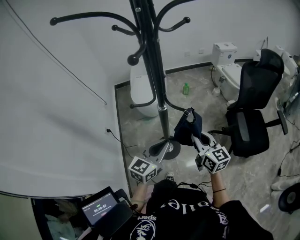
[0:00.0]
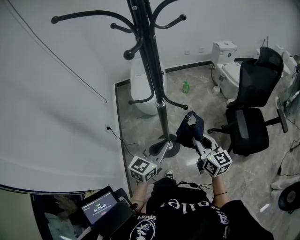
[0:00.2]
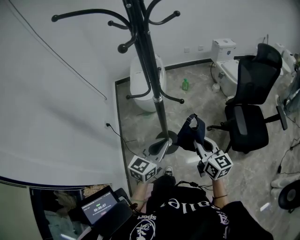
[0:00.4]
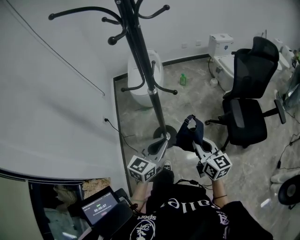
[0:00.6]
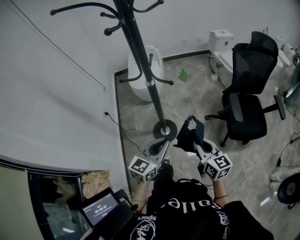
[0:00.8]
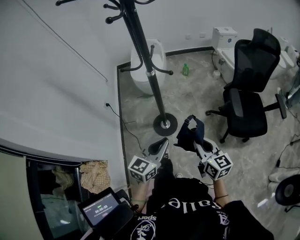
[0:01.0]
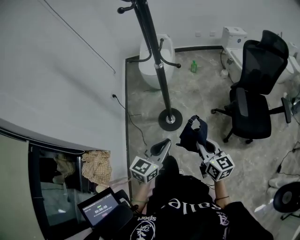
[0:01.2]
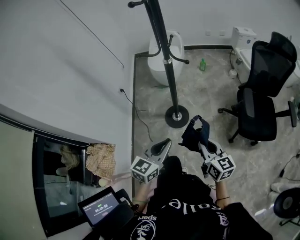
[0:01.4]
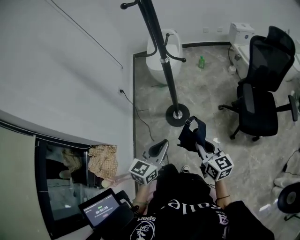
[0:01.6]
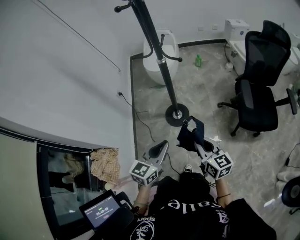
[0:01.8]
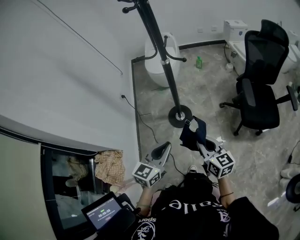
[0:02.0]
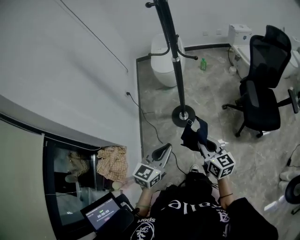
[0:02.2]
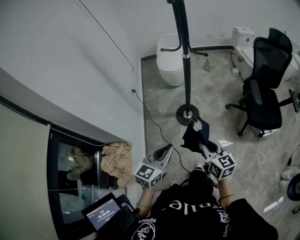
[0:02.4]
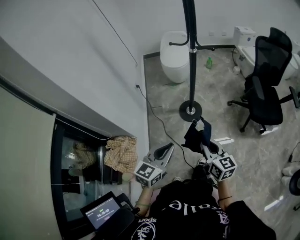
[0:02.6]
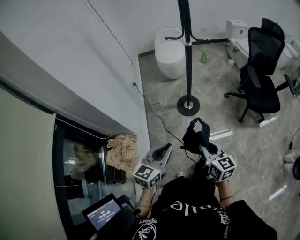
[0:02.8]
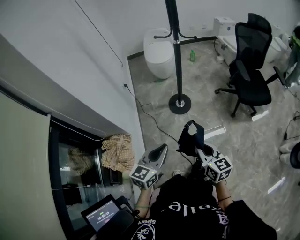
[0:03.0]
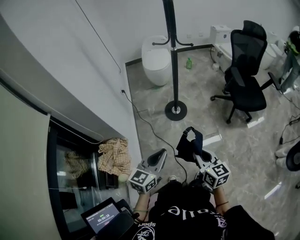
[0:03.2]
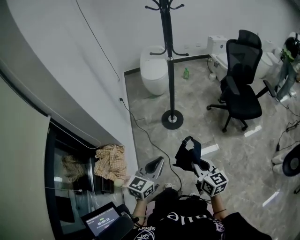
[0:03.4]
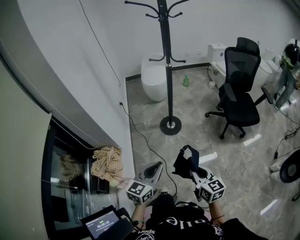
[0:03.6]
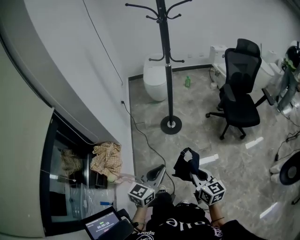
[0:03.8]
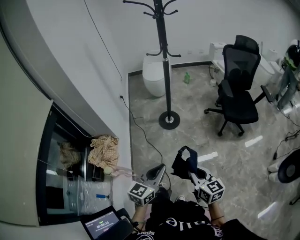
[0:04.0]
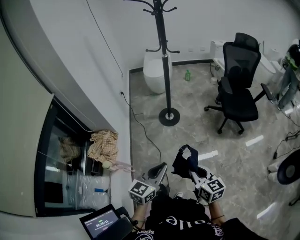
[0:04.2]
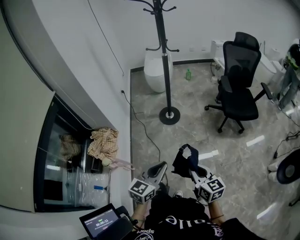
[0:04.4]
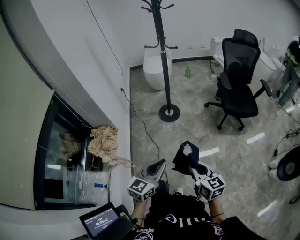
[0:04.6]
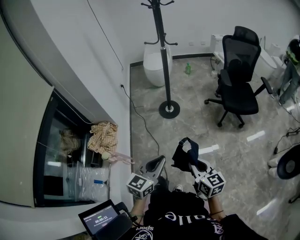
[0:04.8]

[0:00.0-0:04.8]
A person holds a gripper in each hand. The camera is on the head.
0:00.0 to 0:01.6: Both grippers travel together backward, approximately 25 cm.
0:01.6 to 0:03.2: The grippers both shift backward and to the left by approximately 30 cm.
0:03.2 to 0:04.8: The grippers both shift backward and to the right by about 25 cm.

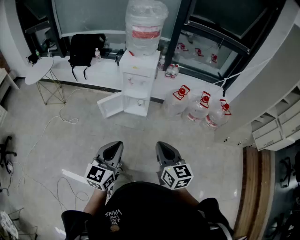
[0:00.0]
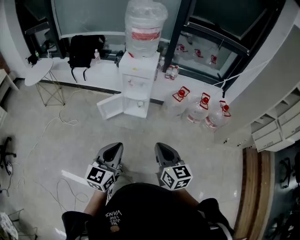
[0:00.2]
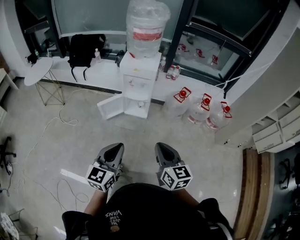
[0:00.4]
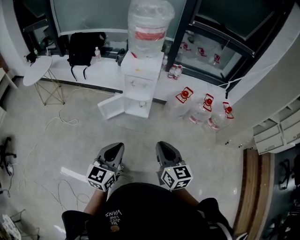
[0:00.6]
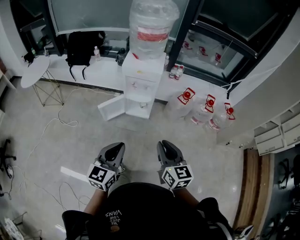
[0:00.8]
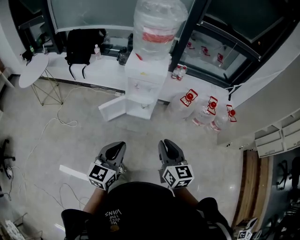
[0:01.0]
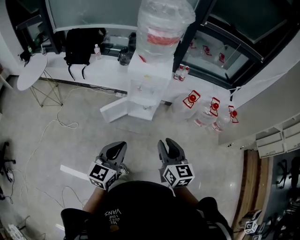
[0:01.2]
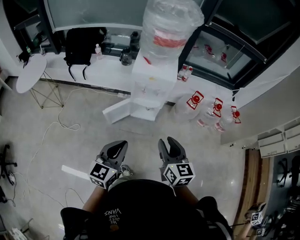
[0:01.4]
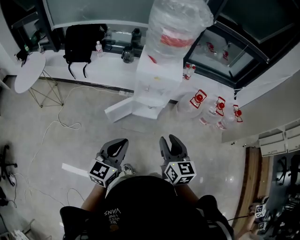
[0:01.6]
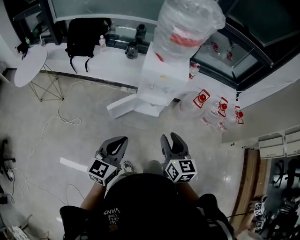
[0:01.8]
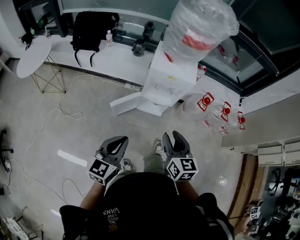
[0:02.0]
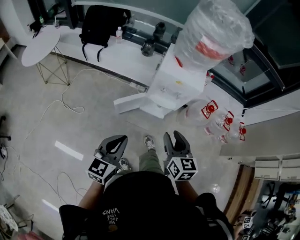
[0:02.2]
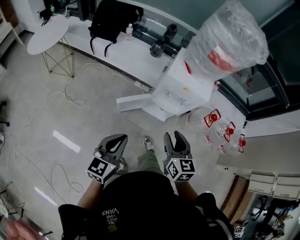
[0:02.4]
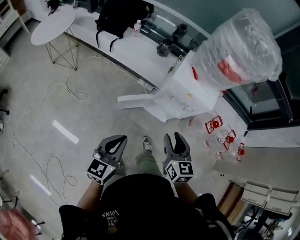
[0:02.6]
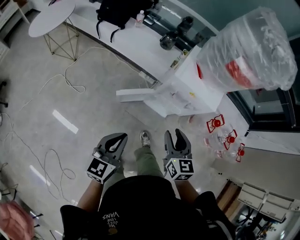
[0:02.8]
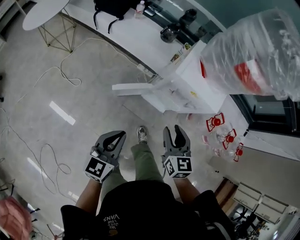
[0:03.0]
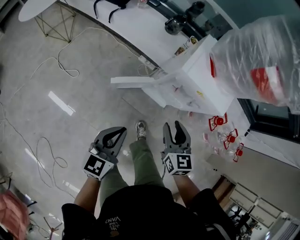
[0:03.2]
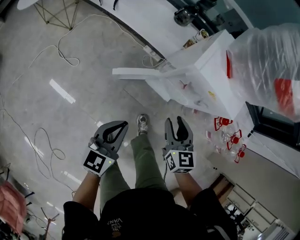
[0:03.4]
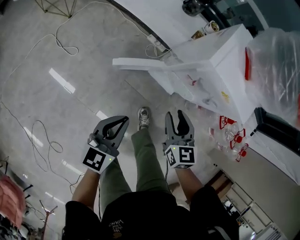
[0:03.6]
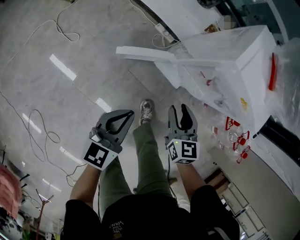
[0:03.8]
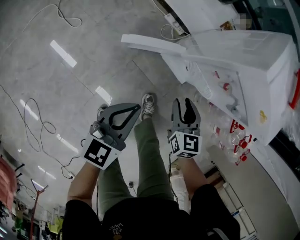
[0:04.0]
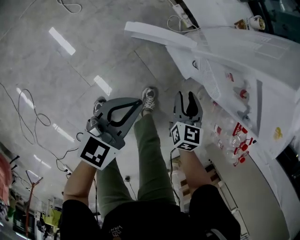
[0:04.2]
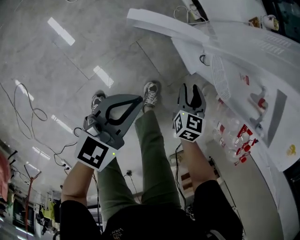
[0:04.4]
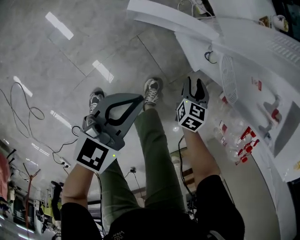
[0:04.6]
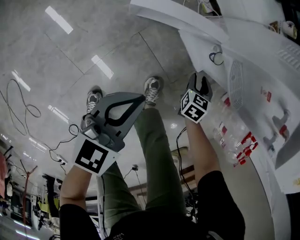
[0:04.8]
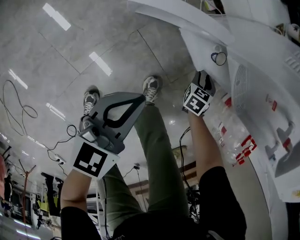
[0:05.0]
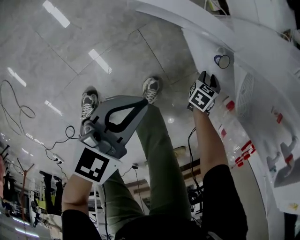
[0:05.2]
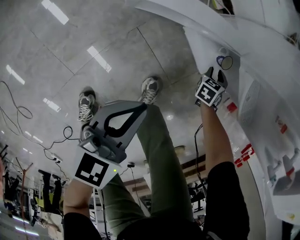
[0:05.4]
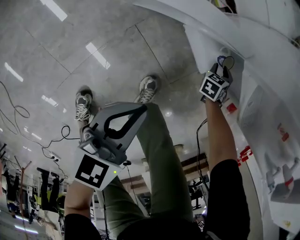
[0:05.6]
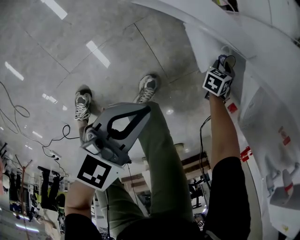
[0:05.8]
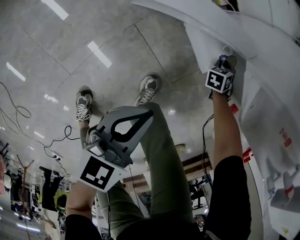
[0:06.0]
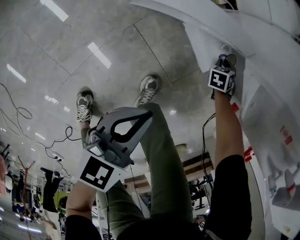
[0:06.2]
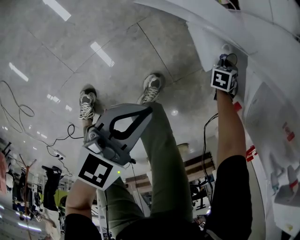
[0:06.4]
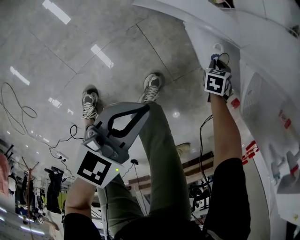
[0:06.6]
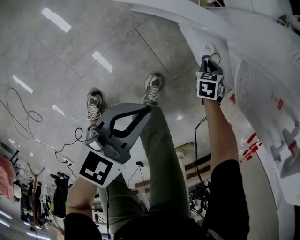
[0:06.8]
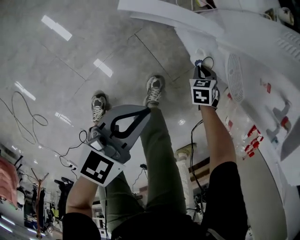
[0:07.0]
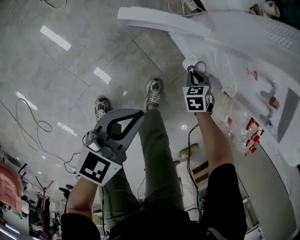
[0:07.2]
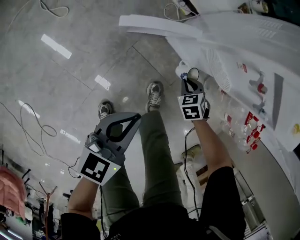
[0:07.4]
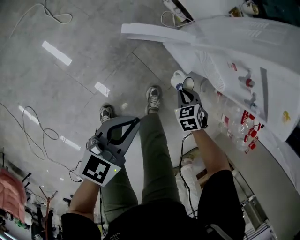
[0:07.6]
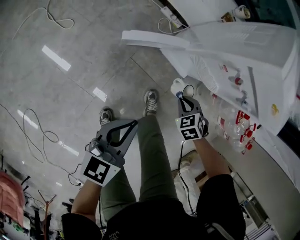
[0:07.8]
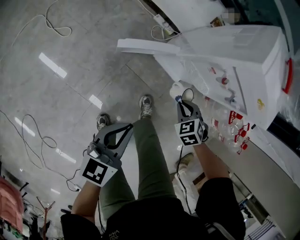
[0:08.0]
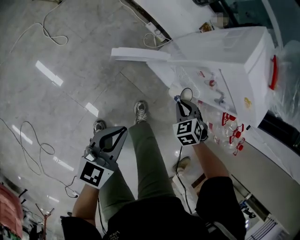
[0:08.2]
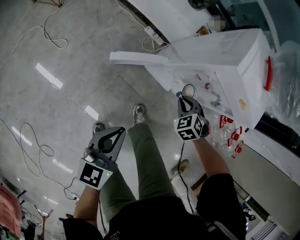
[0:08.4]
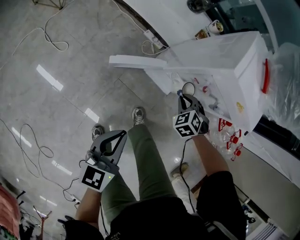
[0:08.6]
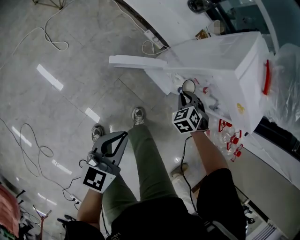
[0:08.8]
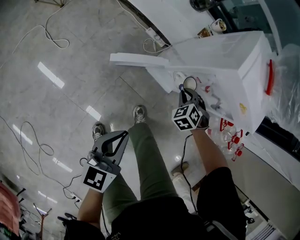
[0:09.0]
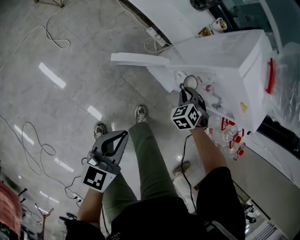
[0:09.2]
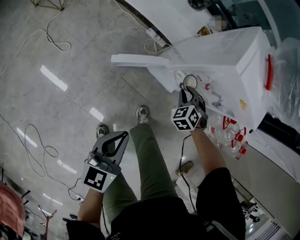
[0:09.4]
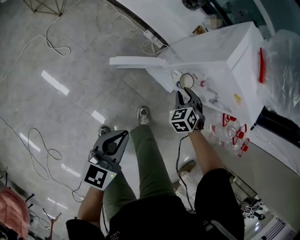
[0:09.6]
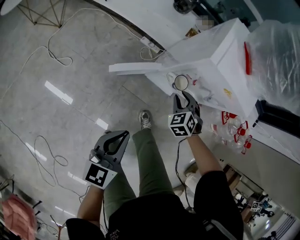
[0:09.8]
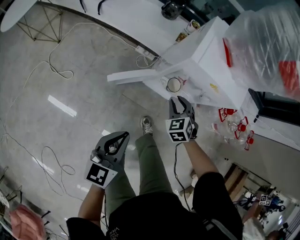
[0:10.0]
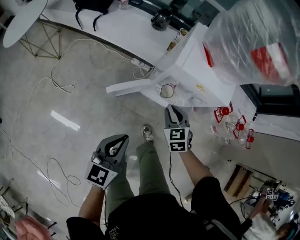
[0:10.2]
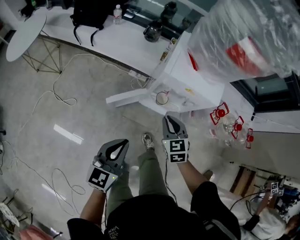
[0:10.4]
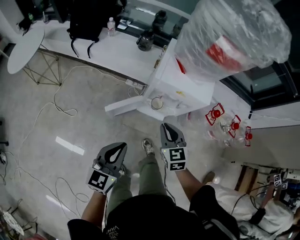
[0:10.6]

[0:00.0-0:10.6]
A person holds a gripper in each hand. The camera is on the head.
0:00.0 to 0:01.6: The grippers both shift forward and to the left by roughly 30 cm. The right gripper opens.
0:01.6 to 0:03.0: The right gripper shifts about 25 cm forward and downward, and changes its angle by roughly 20 degrees. Meanwhile the left gripper travels forward, downward and to the left by some 20 cm, and swivels roughly 20 degrees.
0:03.0 to 0:04.6: The two grippers go roughly 50 cm downward. The right gripper rotates approximately 30 degrees.
0:04.6 to 0:06.0: The right gripper is displaced downward by roughly 20 cm, and changes its angle by about 40 degrees, while the left gripper is displaced downward by about 15 cm.
0:06.0 to 0:07.6: The grippers both shift upward by some 25 cm. The right gripper changes its angle by some 30 degrees.
0:07.6 to 0:09.0: The right gripper heads upward, covering approximately 15 cm, and rotates approximately 20 degrees. The left gripper travels upward by roughly 10 cm.
0:09.0 to 0:10.6: The left gripper moves upward, roughly 20 cm, and turns by approximately 30 degrees. The right gripper goes about 35 cm upward and backward, and twists roughly 50 degrees clockwise, seen from behind.

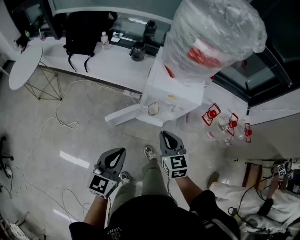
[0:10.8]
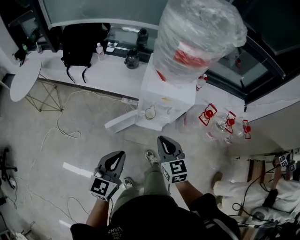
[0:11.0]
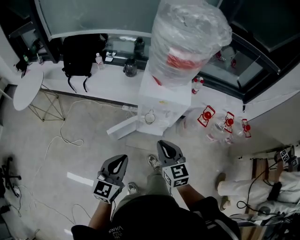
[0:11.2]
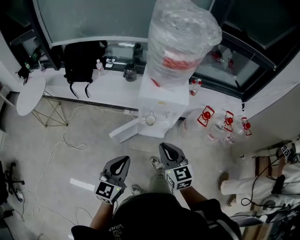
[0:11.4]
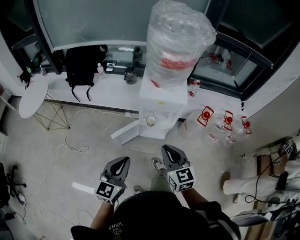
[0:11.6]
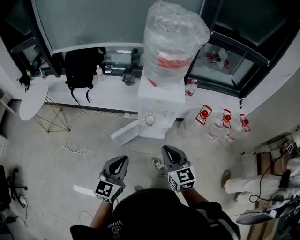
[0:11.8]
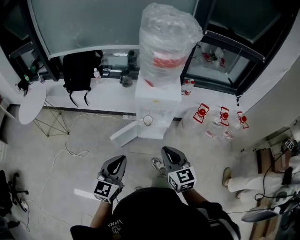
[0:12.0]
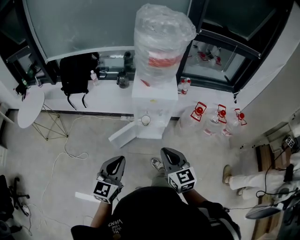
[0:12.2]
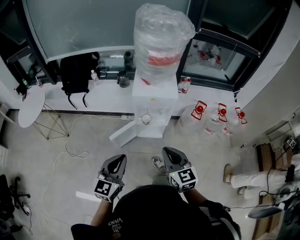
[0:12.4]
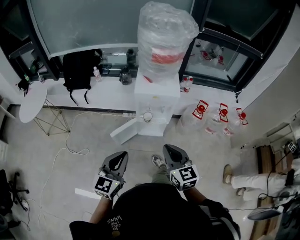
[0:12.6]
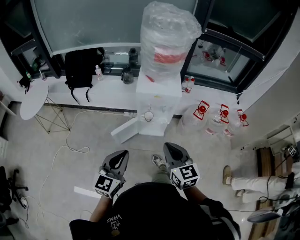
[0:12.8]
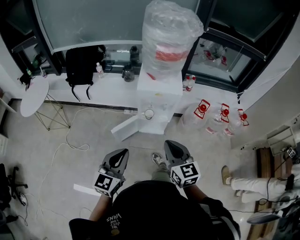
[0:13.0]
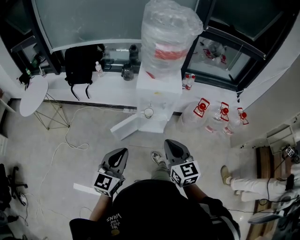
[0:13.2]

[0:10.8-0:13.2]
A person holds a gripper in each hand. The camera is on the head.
0:10.8 to 0:12.0: Both grippers move backward and upward, about 15 cm.
0:12.0 to 0:13.2: The grippers move only a little.

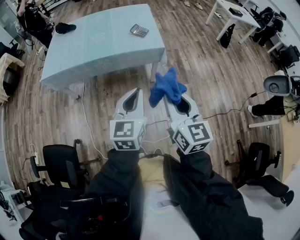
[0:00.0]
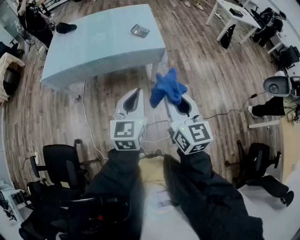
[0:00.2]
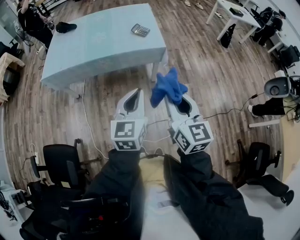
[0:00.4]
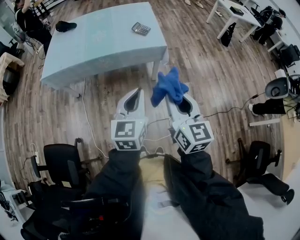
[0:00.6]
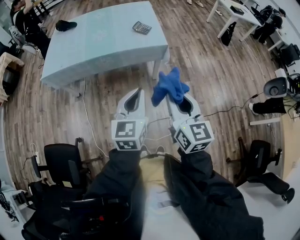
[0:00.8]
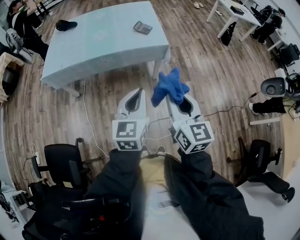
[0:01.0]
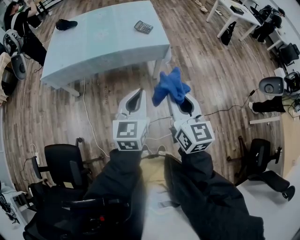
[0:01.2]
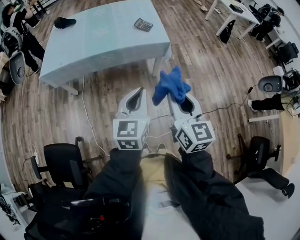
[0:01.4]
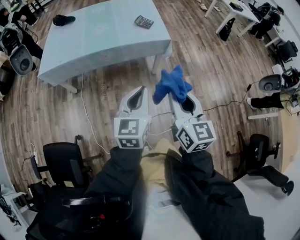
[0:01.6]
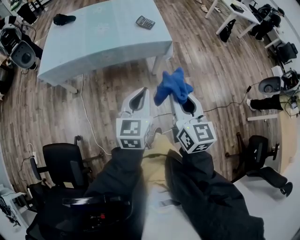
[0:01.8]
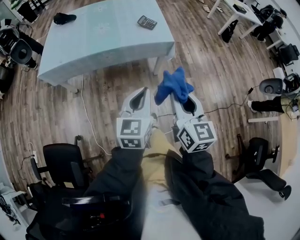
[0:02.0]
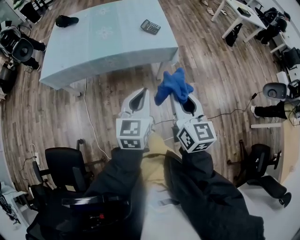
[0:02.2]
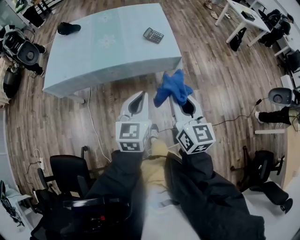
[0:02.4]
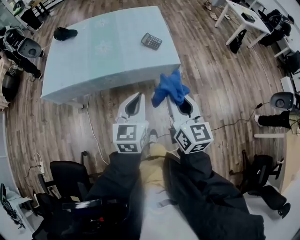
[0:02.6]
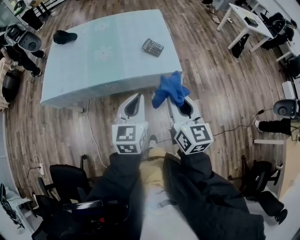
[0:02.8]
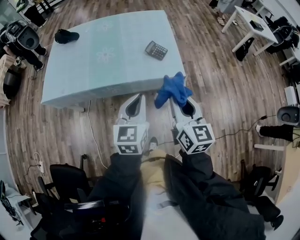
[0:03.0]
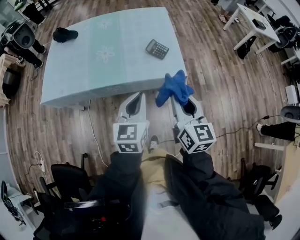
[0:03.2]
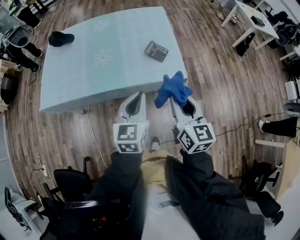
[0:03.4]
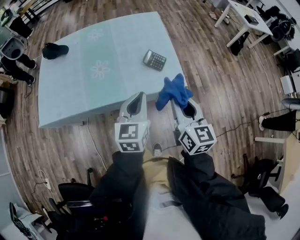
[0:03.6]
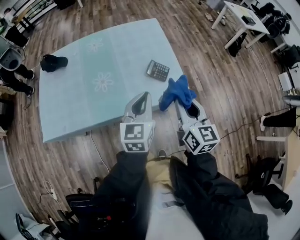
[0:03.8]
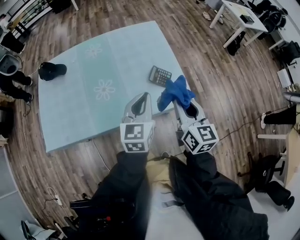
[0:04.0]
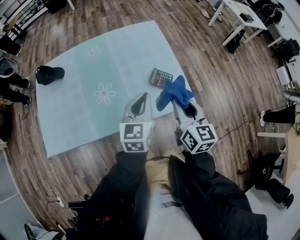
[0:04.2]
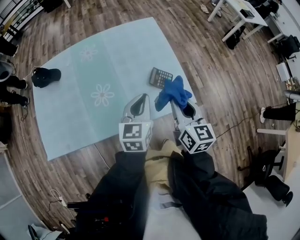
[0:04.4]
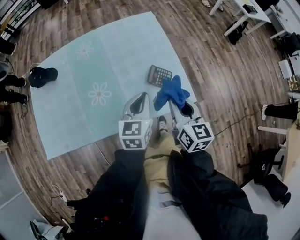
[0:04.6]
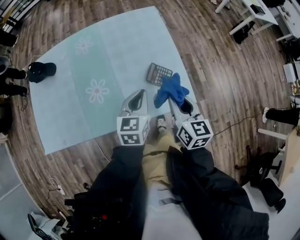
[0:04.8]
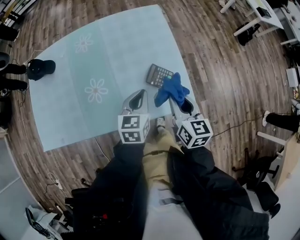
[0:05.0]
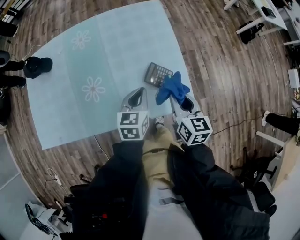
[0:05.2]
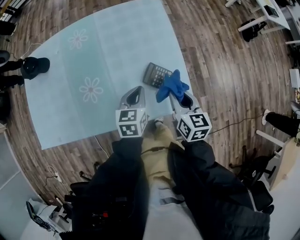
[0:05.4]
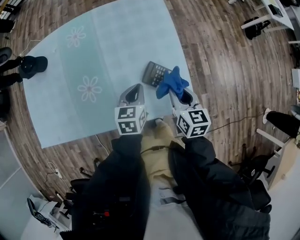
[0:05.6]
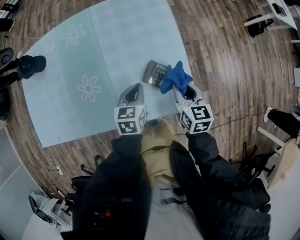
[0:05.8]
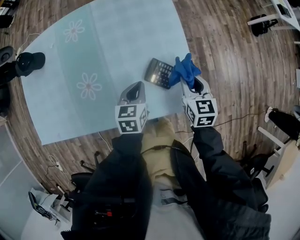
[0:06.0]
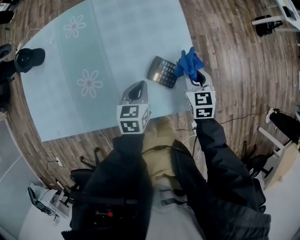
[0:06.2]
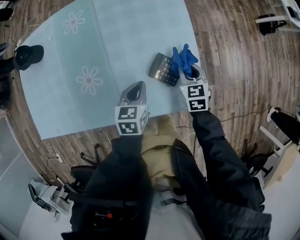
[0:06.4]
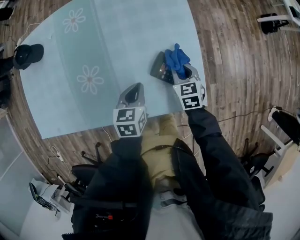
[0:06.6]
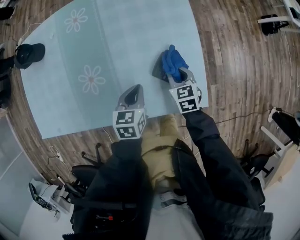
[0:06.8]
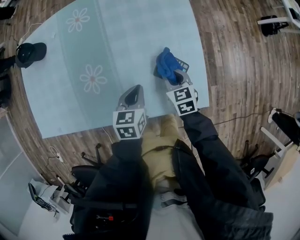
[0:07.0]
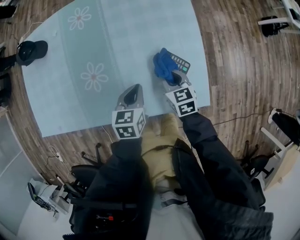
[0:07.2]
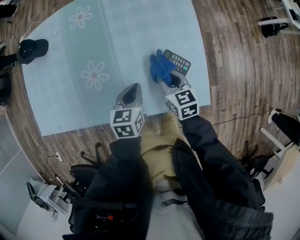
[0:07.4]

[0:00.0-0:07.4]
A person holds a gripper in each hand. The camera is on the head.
0:00.0 to 0:01.4: The left gripper shifts by roughly 5 cm.
0:01.4 to 0:03.0: The grippers both shift forward by roughly 30 cm.
0:03.0 to 0:04.4: The two grippers go roughly 25 cm forward.
0:04.4 to 0:06.0: The left gripper shifts approximately 20 cm downward and forward, and swivels roughly 20 degrees, while the right gripper moves downward, forward and to the right, roughly 25 cm, and turns by roughly 20 degrees.
0:06.0 to 0:07.4: The right gripper moves to the left and downward, roughly 15 cm. The left gripper goes approximately 5 cm to the left.
